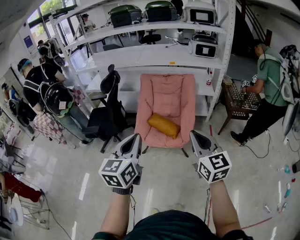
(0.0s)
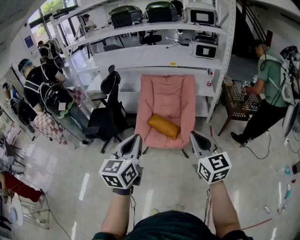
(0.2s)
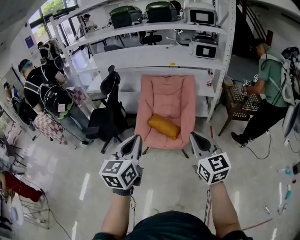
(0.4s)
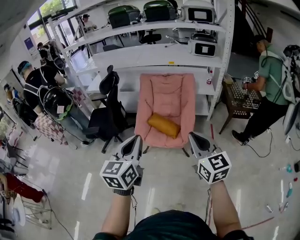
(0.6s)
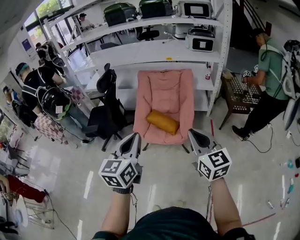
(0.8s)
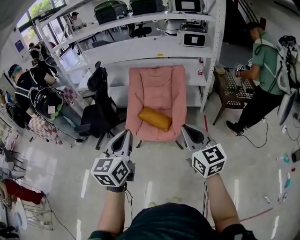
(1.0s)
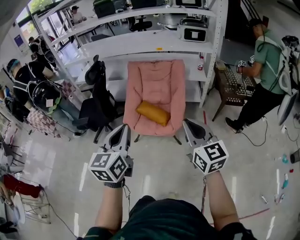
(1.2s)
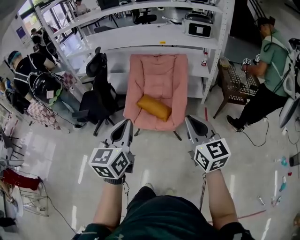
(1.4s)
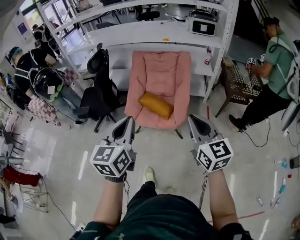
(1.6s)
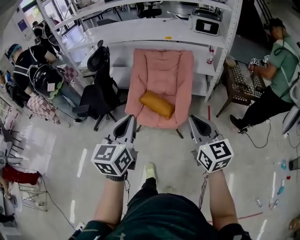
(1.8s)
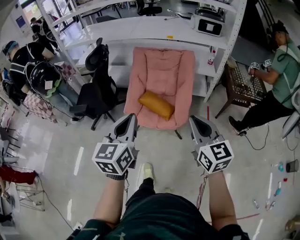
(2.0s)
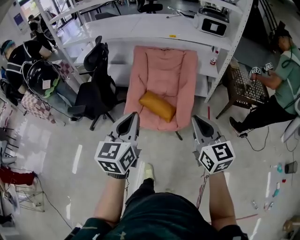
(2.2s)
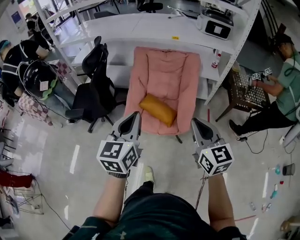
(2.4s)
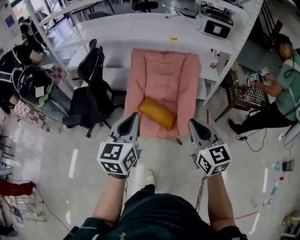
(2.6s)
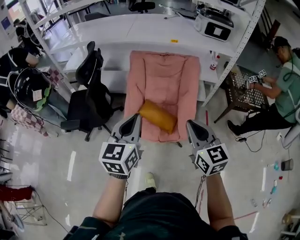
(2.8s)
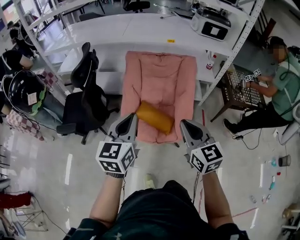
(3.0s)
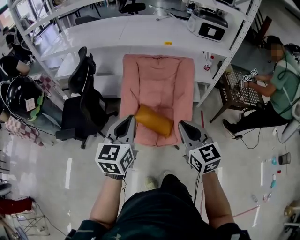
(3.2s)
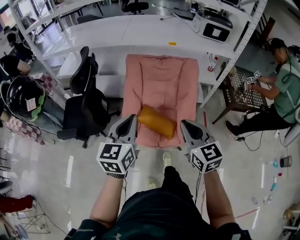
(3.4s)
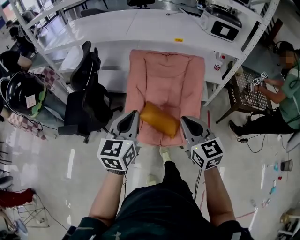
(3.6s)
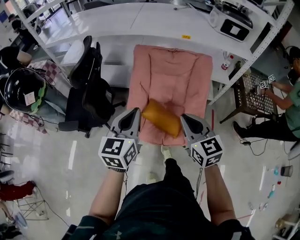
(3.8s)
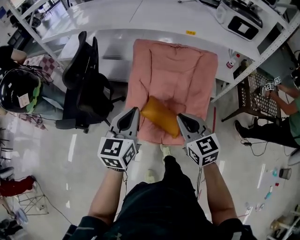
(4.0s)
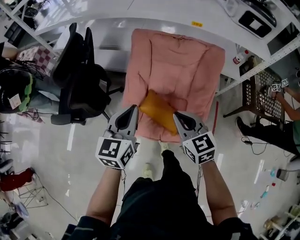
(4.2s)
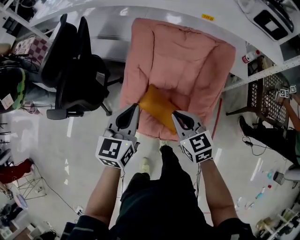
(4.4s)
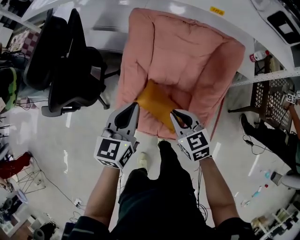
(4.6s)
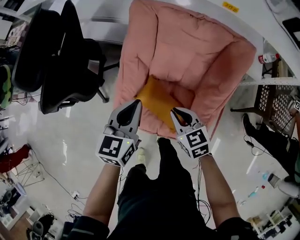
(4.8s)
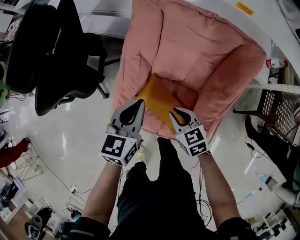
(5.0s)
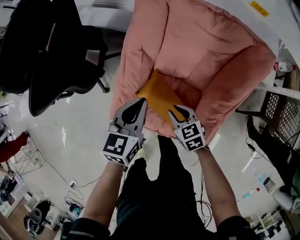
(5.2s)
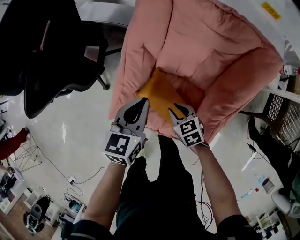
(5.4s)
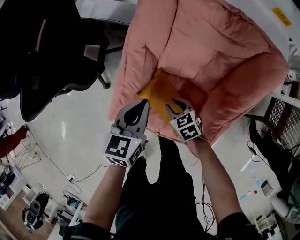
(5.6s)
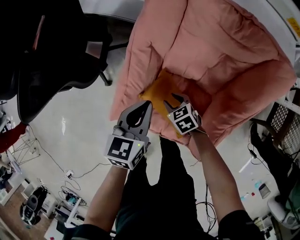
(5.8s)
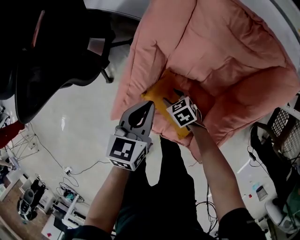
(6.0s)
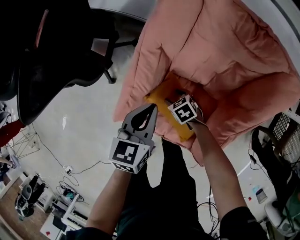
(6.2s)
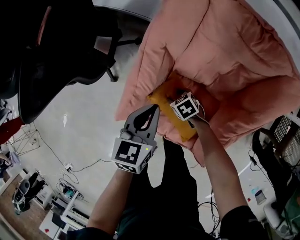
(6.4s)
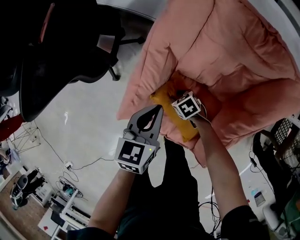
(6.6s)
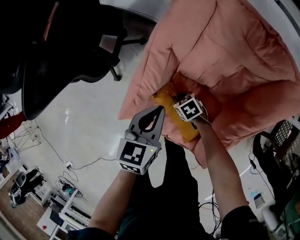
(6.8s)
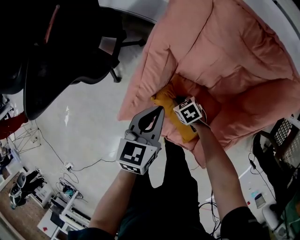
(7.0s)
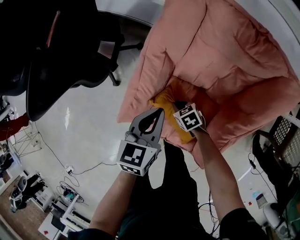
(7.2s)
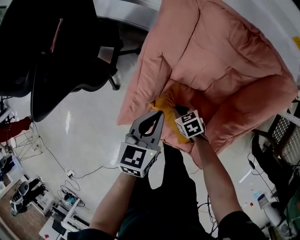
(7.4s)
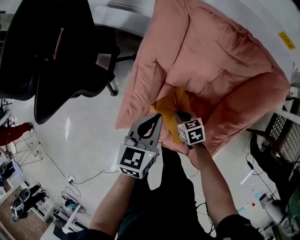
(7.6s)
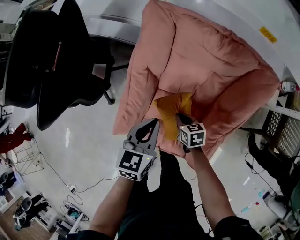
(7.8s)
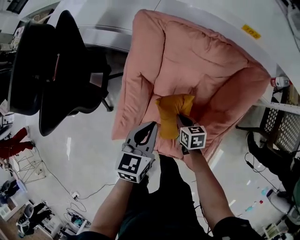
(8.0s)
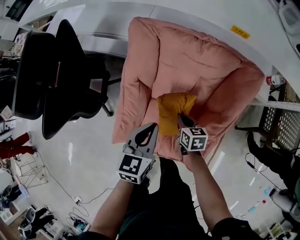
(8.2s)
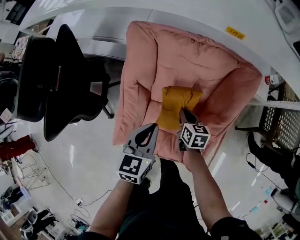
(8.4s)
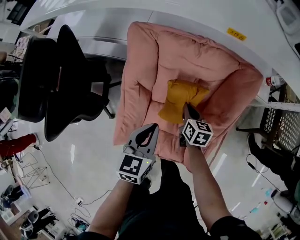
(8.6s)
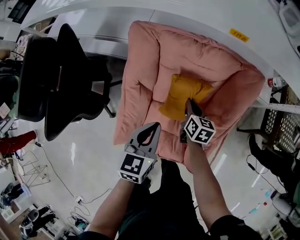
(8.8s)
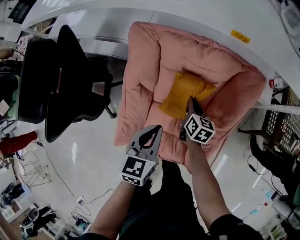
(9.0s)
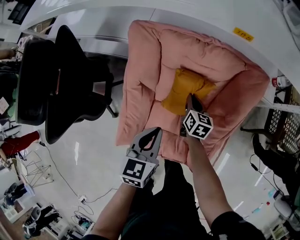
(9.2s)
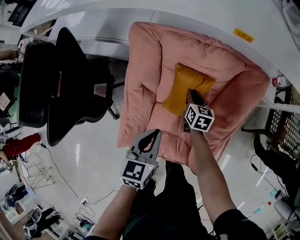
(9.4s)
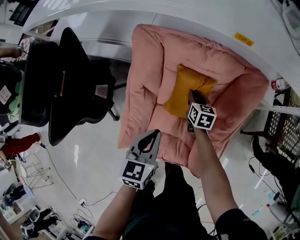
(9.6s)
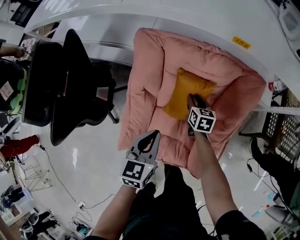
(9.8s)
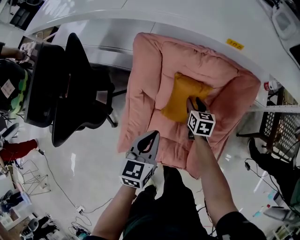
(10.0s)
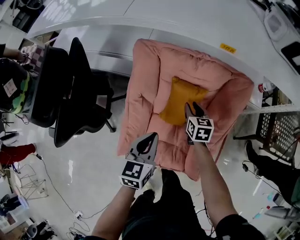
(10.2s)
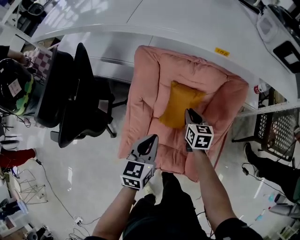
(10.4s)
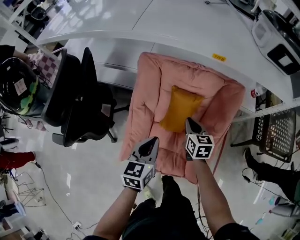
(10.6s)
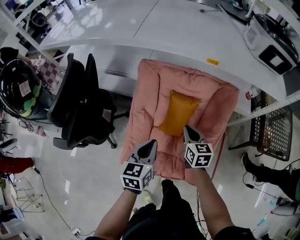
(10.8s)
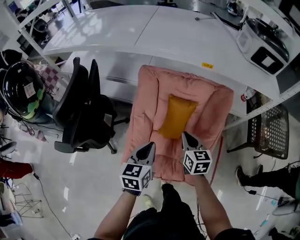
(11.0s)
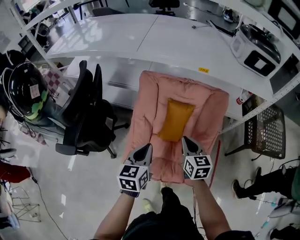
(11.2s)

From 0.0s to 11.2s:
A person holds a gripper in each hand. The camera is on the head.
From 0.0s to 1.6s: The two grippers go about 5 cm to the right.
From 1.6s to 3.2s: The left gripper shifts some 30 cm forward; the right gripper shifts approximately 30 cm forward and to the left.
From 3.2s to 4.8s: The left gripper goes approximately 40 cm forward and downward. Meanwhile the right gripper moves downward and forward, approximately 40 cm, and rotates about 40 degrees.
From 4.8s to 6.4s: The left gripper heads downward, covering some 15 cm. The right gripper goes approximately 30 cm downward, rotates about 40 degrees, and opens up.
From 6.4s to 8.0s: The left gripper heads upward, covering approximately 10 cm, while the right gripper is displaced upward by roughly 15 cm, rotates approximately 40 degrees, and closes.
From 8.0s to 9.6s: The right gripper heads forward, covering approximately 15 cm, and swivels approximately 20 degrees.
From 9.6s to 11.2s: The right gripper travels upward and backward by approximately 35 cm. The left gripper heads upward and backward, covering approximately 15 cm.

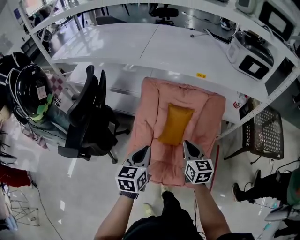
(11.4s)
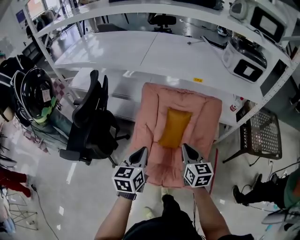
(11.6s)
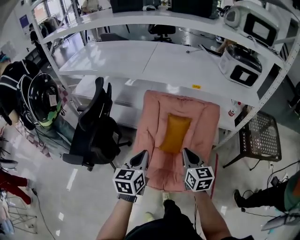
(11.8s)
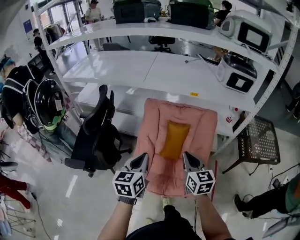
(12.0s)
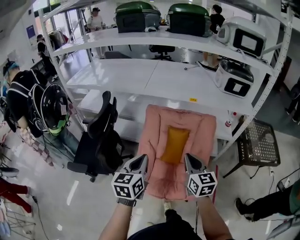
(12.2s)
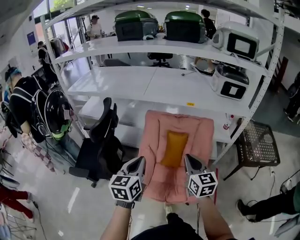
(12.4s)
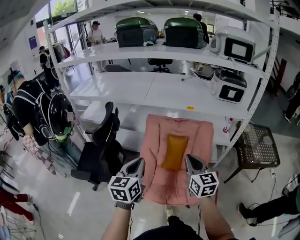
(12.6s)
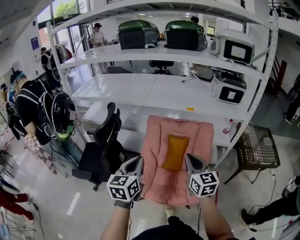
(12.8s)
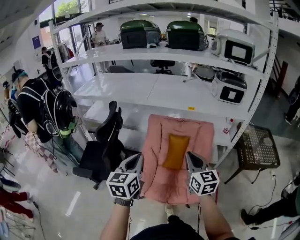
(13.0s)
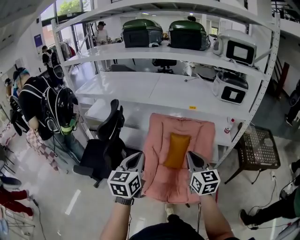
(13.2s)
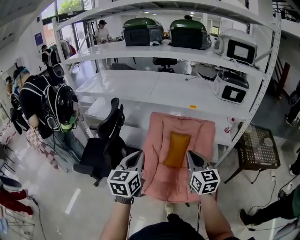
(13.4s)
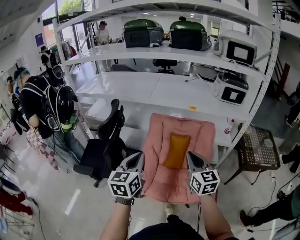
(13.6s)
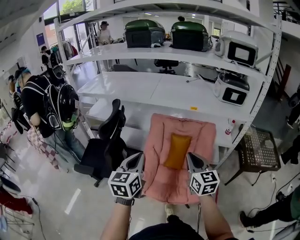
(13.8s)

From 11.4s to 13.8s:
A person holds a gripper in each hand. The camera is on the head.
From 11.4s to 12.6s: The grippers both shift upward and backward by about 20 cm.
From 12.6s to 13.8s: The grippers move only a little.

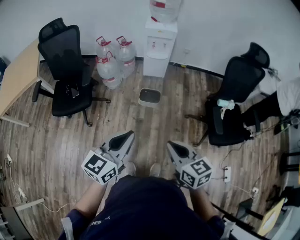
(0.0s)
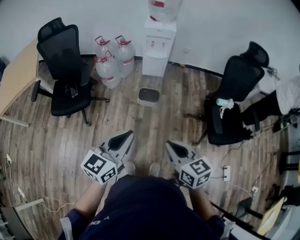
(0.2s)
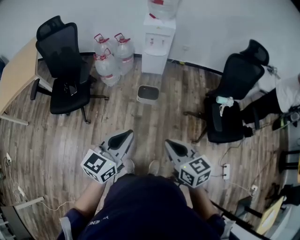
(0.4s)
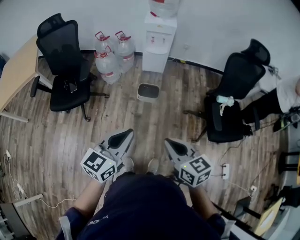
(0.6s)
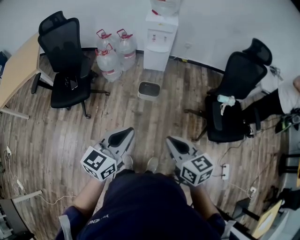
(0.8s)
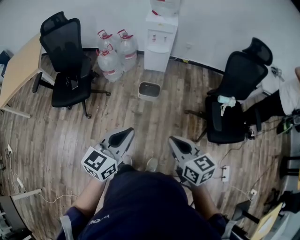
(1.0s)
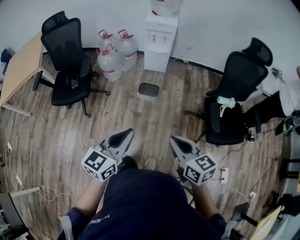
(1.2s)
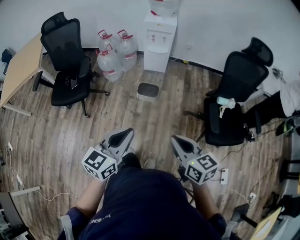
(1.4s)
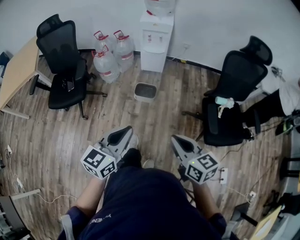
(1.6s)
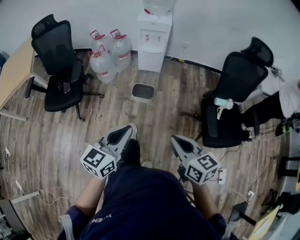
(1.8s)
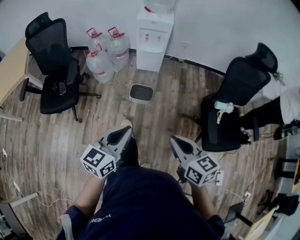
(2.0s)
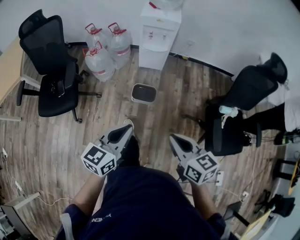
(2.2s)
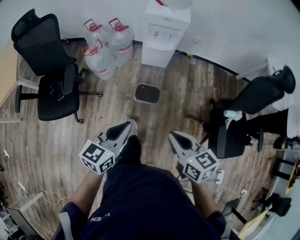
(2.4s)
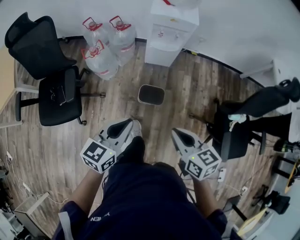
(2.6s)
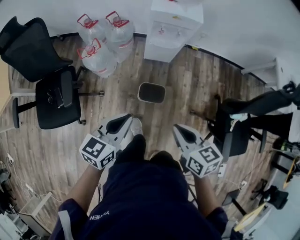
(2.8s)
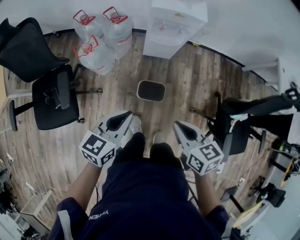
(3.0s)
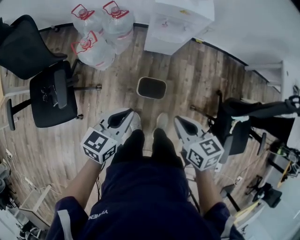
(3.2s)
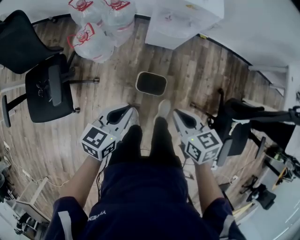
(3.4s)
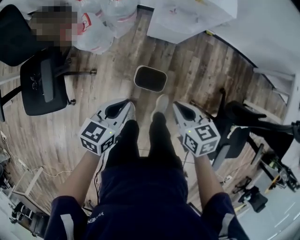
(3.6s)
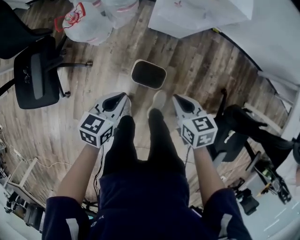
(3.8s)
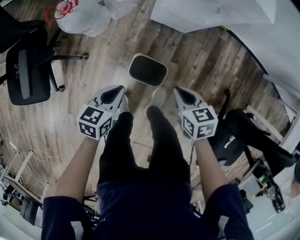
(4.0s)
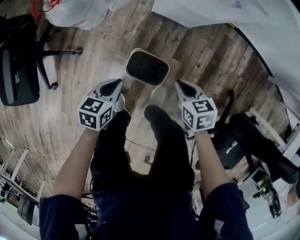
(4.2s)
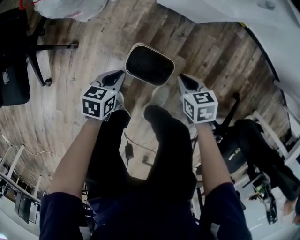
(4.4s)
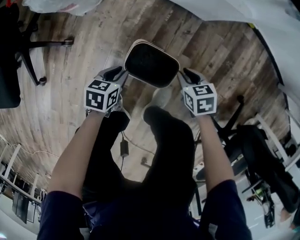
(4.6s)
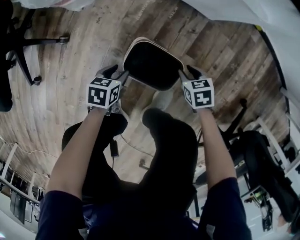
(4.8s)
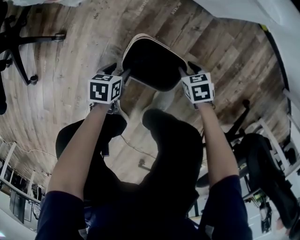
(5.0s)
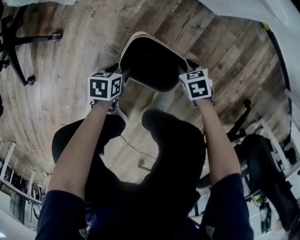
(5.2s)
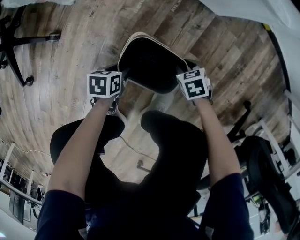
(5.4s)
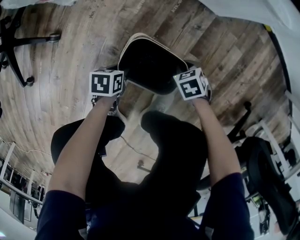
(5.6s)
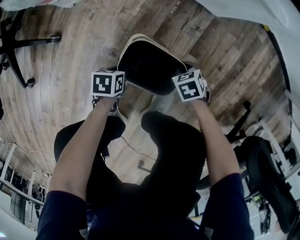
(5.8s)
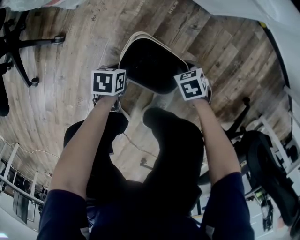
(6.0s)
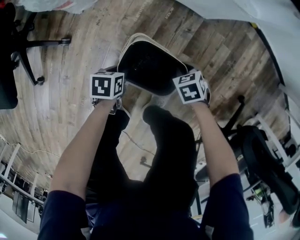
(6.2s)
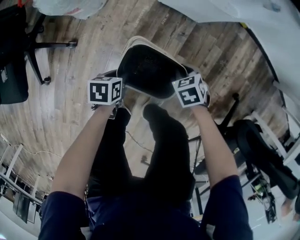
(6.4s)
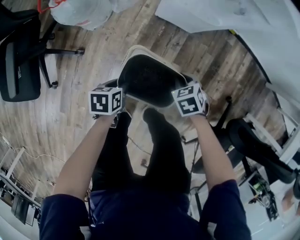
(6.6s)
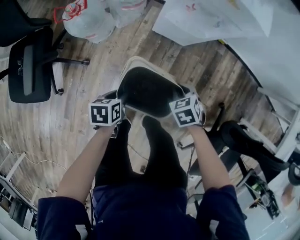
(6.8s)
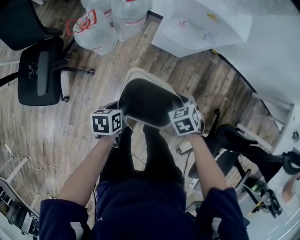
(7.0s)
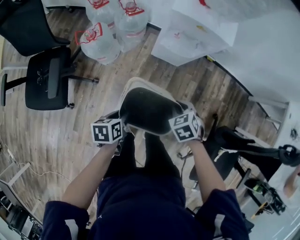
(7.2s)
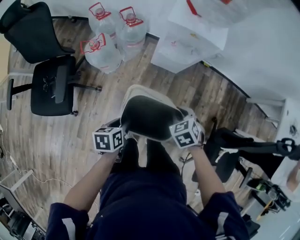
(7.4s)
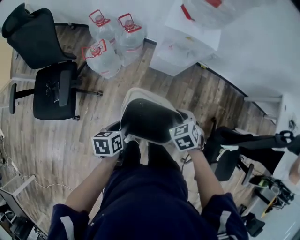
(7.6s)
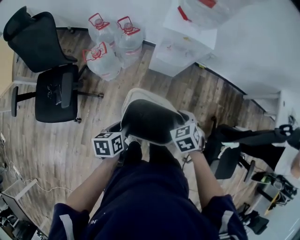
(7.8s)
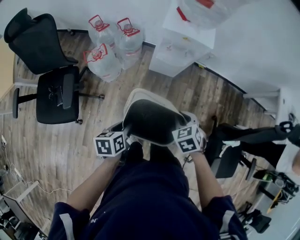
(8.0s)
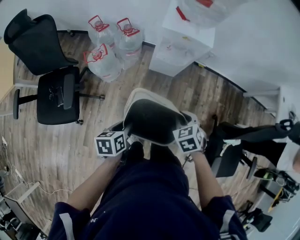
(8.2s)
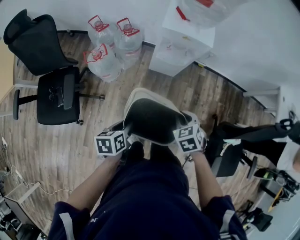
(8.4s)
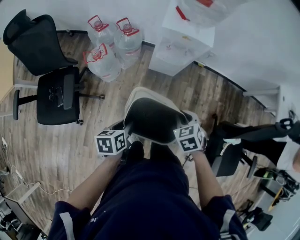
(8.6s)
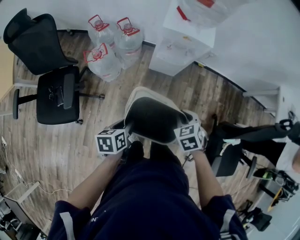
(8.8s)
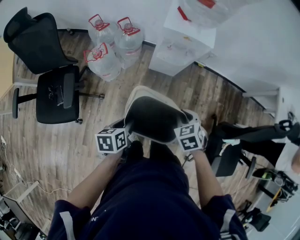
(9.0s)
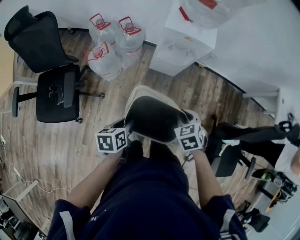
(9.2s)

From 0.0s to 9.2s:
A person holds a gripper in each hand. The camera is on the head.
From 0.0s to 1.6s: The grippers both shift to the right by some 10 cm.
From 1.6s to 3.0s: The pair of grippers is taken forward, about 40 cm.
From 3.0s to 4.6s: The two grippers go roughly 60 cm downward. The left gripper points its fingers about 30 degrees further downward, and opens up. Meanwhile the right gripper turns by approximately 40 degrees.
From 4.6s to 6.2s: The right gripper moves approximately 20 cm downward and comes back, while the left gripper travels downward and back again, approximately 15 cm each way, and opens and closes again.
From 6.2s to 7.6s: The grippers both shift upward by roughly 50 cm.
From 7.6s to 9.2s: The grippers make only small movements.

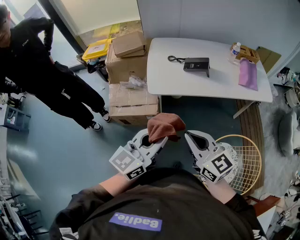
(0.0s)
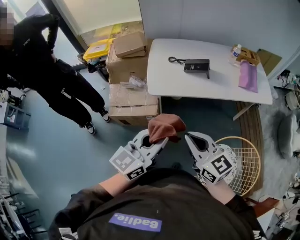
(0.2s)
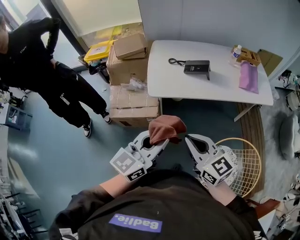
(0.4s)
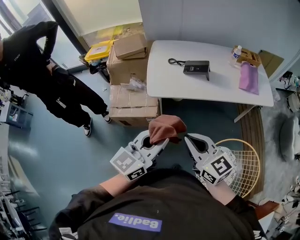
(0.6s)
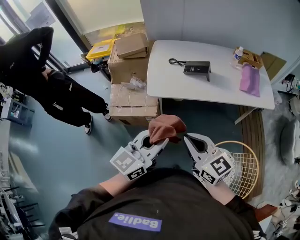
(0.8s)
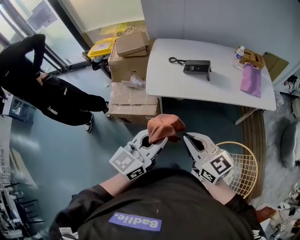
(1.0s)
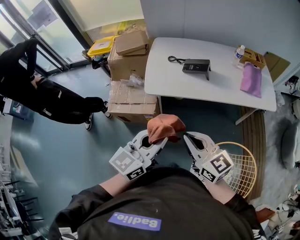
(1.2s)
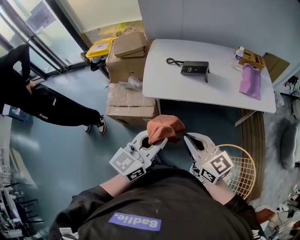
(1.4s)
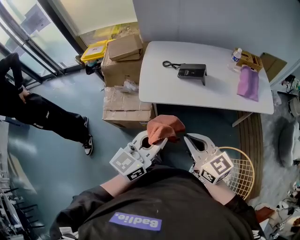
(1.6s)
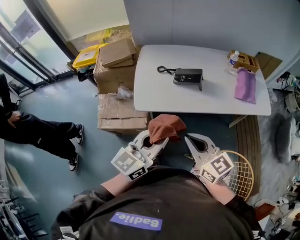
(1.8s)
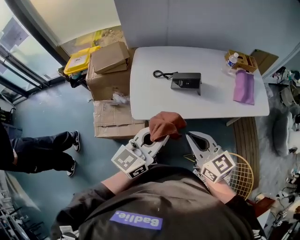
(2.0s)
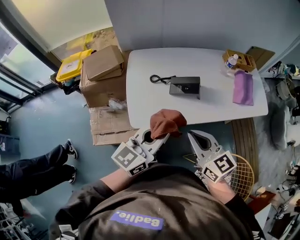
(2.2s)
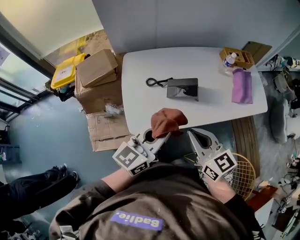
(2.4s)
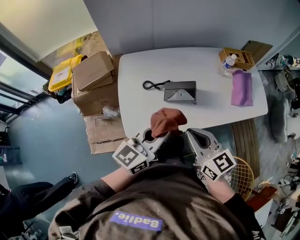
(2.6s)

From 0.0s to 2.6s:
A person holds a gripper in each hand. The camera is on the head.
From 0.0s to 1.2s: The two grippers go some 5 cm to the right.
From 1.2s to 2.6s: Both grippers travel together forward, approximately 30 cm.
